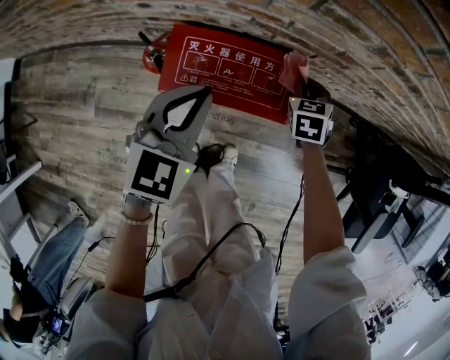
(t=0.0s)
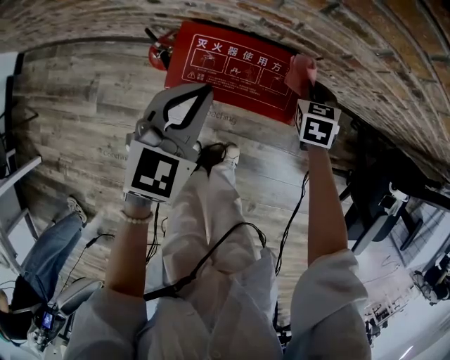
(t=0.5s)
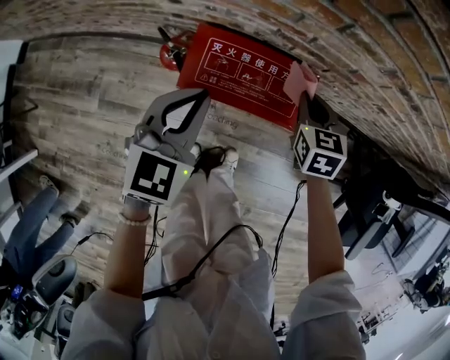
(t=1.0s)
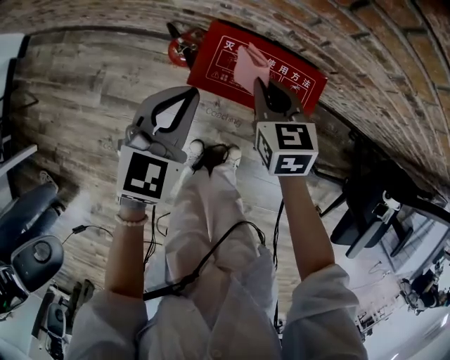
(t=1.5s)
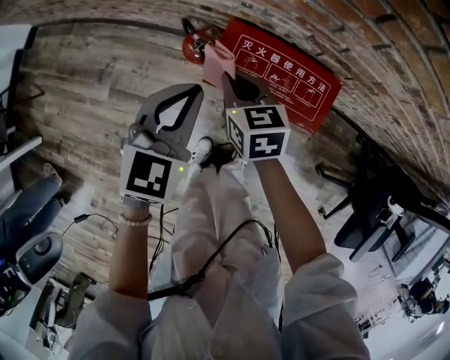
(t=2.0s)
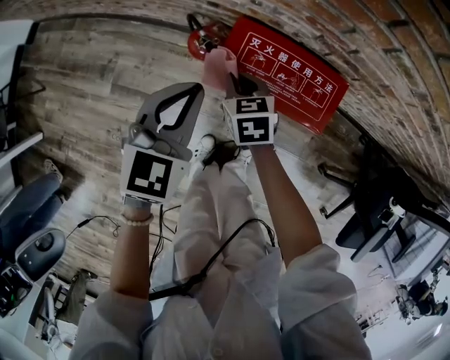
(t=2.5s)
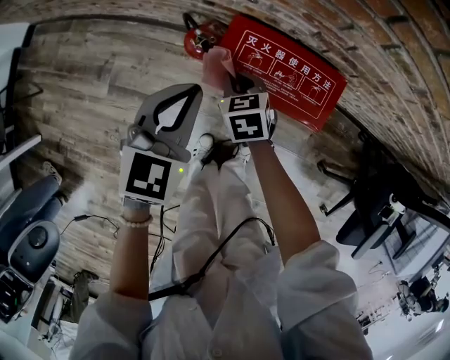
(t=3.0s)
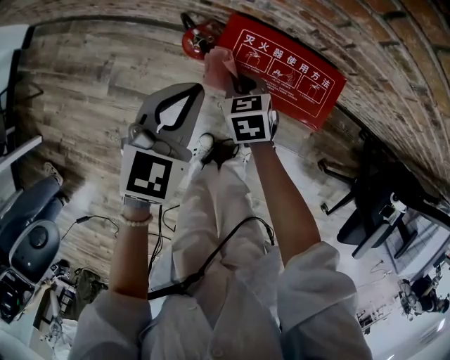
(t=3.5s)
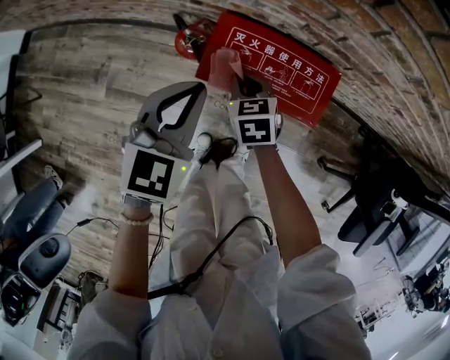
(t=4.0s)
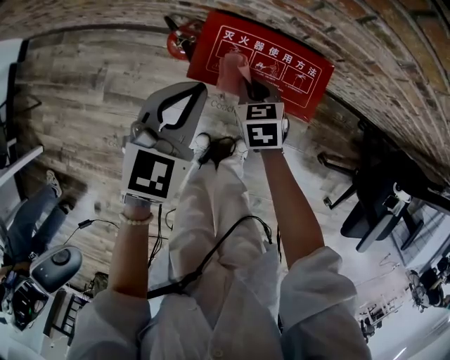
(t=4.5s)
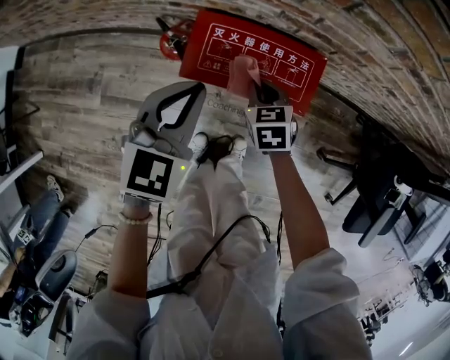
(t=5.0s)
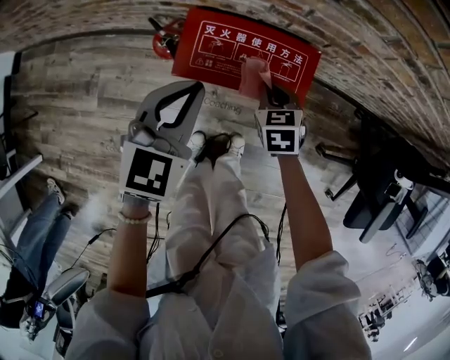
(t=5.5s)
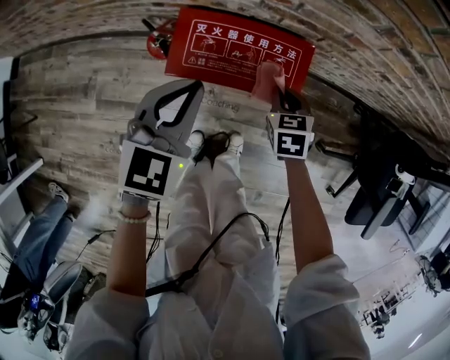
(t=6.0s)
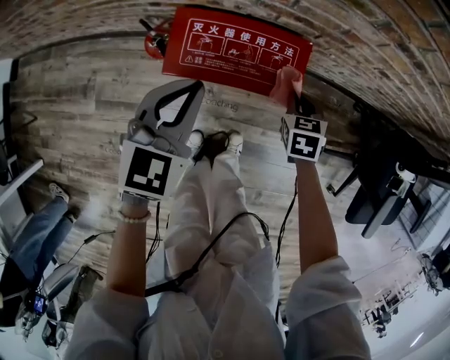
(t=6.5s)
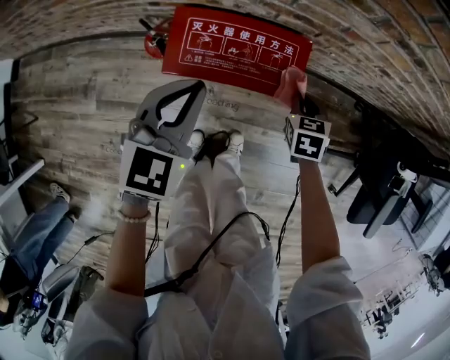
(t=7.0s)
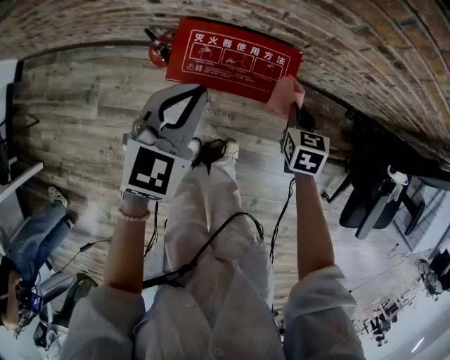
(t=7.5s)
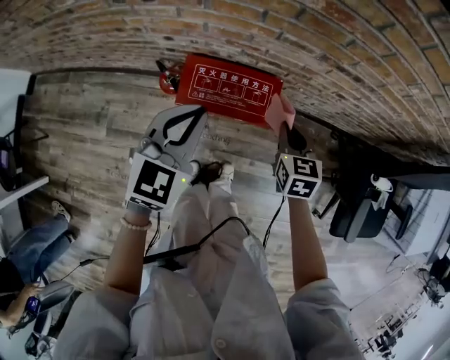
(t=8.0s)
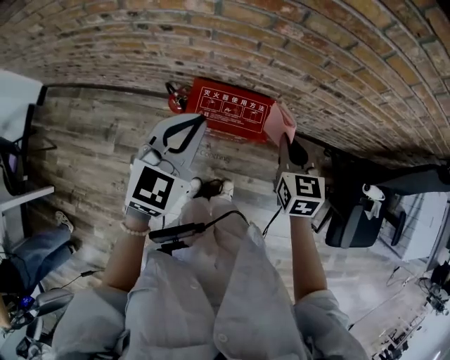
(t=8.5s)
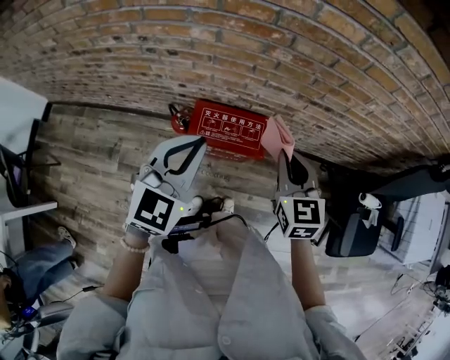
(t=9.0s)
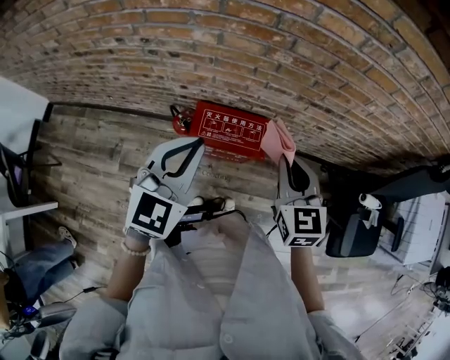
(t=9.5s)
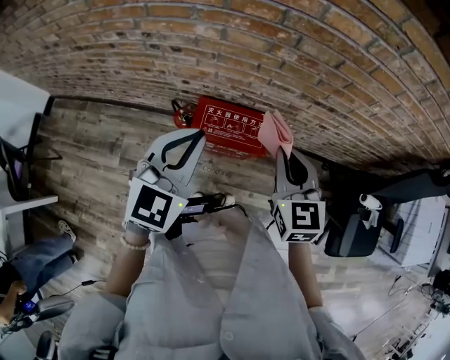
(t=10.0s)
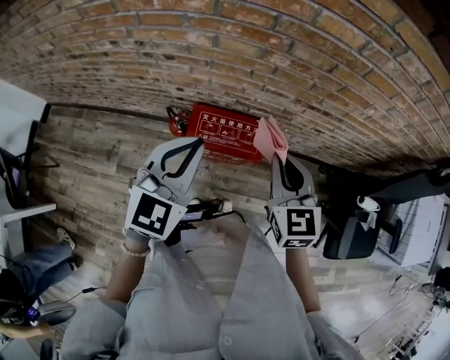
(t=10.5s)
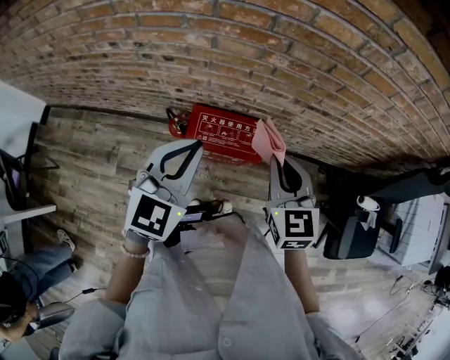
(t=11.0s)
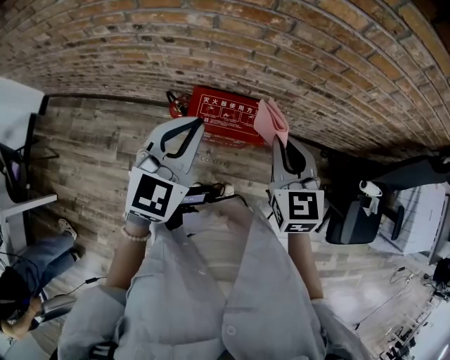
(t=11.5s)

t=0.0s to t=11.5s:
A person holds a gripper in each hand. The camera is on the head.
t=0.0s to t=2.0s: The right gripper changes place by roughly 35 cm, and changes its angle by about 40 degrees. The left gripper ends up approximately 15 cm from where it was.
t=2.0s to t=4.0s: The right gripper shifts about 10 cm downward.
t=4.0s to t=6.0s: The right gripper is displaced to the right by some 20 cm; the left gripper goes about 5 cm to the right.
t=6.0s to t=7.5s: The right gripper travels to the right and upward by some 10 cm.
t=7.5s to t=9.5s: The two grippers go some 30 cm upward. The right gripper changes its angle by roughly 30 degrees.
t=9.5s to t=11.5s: The grippers make only small movements.

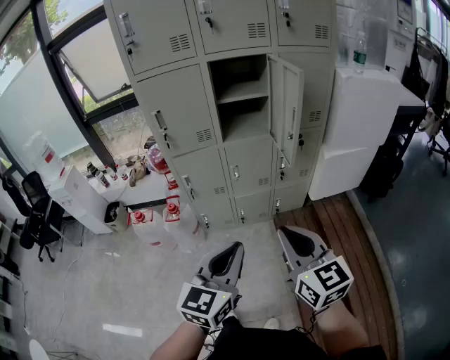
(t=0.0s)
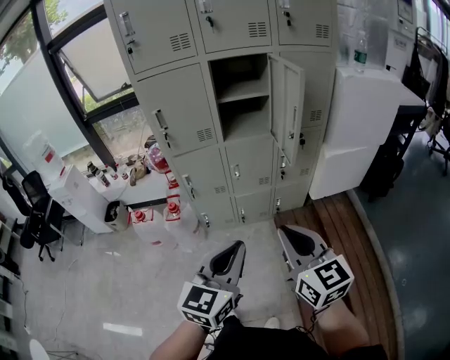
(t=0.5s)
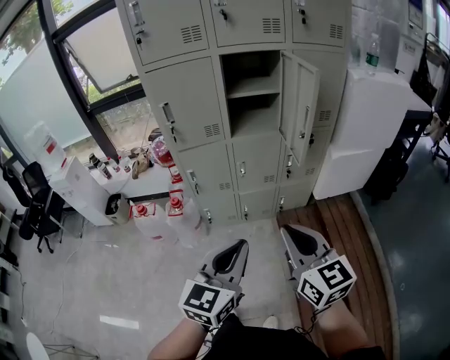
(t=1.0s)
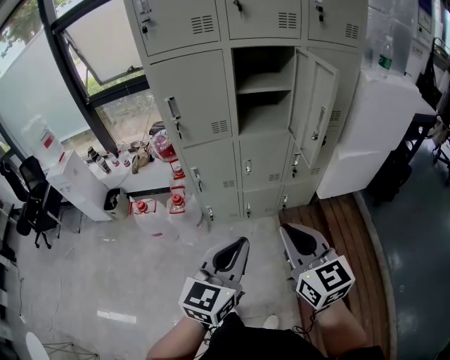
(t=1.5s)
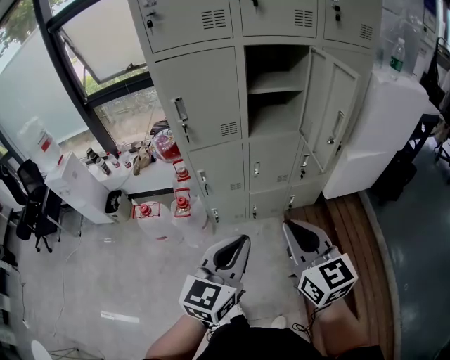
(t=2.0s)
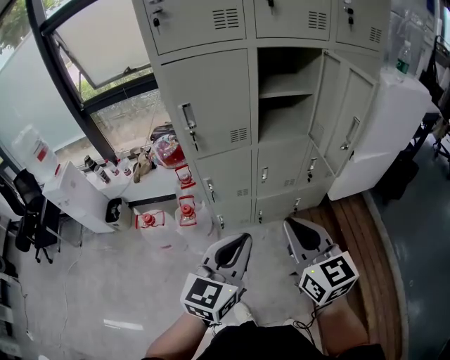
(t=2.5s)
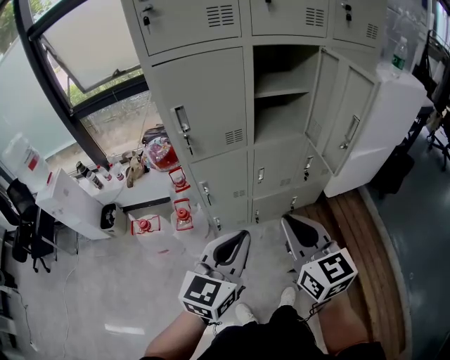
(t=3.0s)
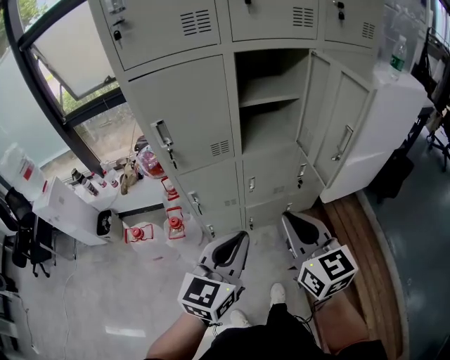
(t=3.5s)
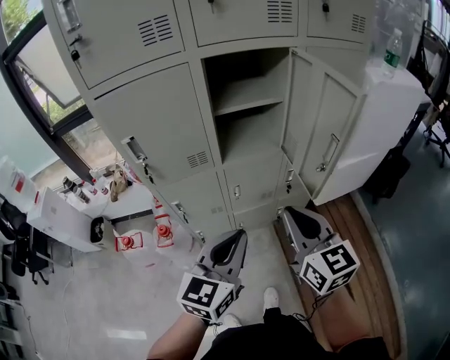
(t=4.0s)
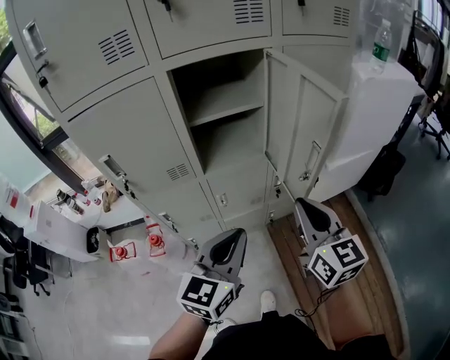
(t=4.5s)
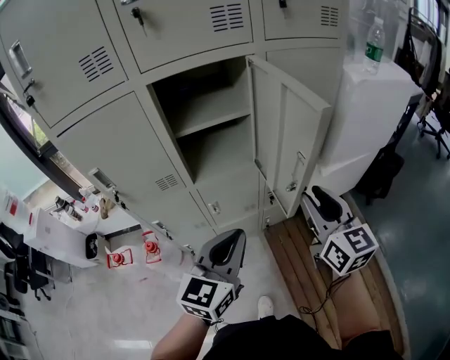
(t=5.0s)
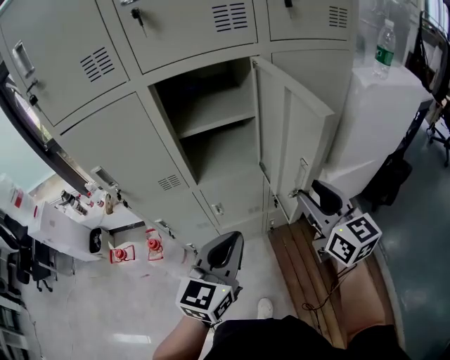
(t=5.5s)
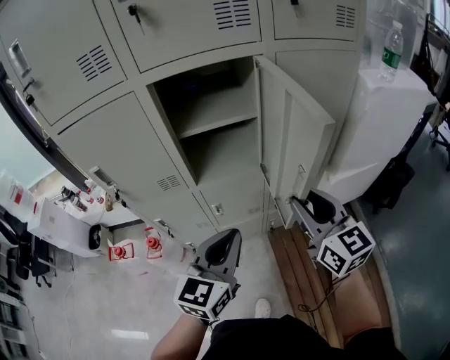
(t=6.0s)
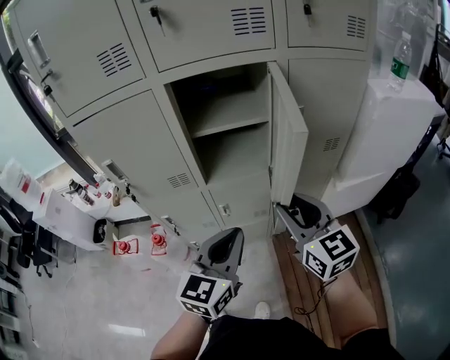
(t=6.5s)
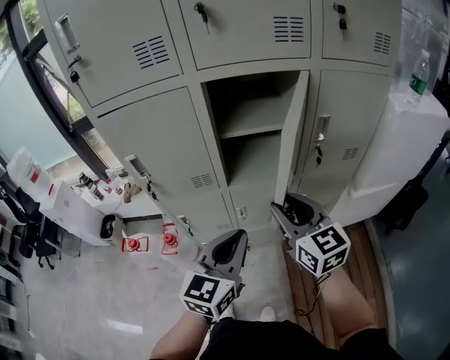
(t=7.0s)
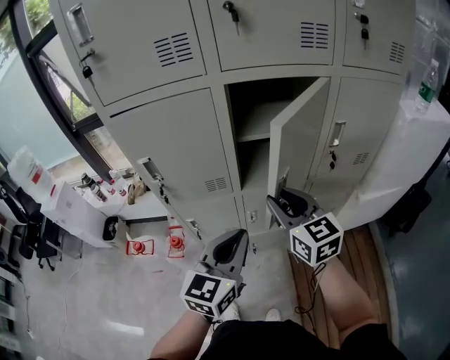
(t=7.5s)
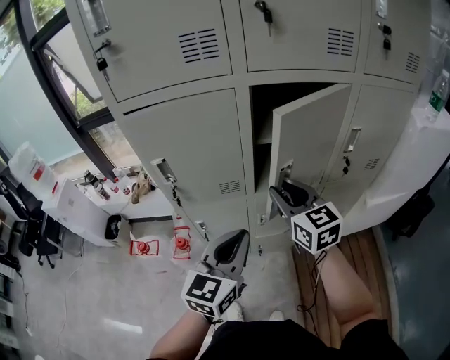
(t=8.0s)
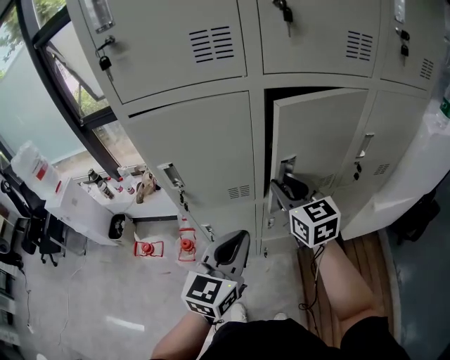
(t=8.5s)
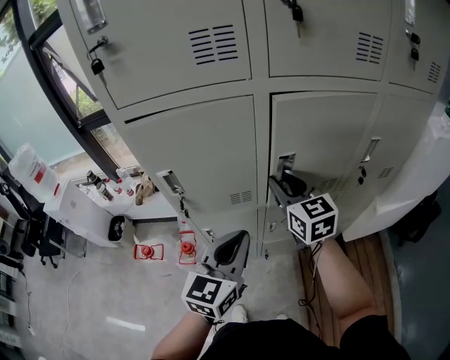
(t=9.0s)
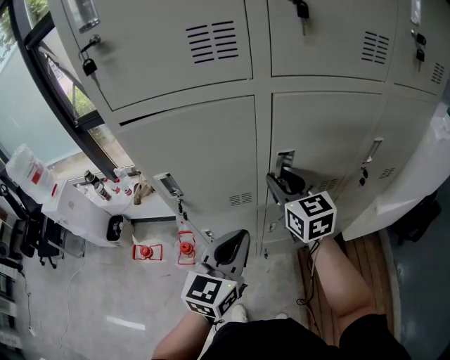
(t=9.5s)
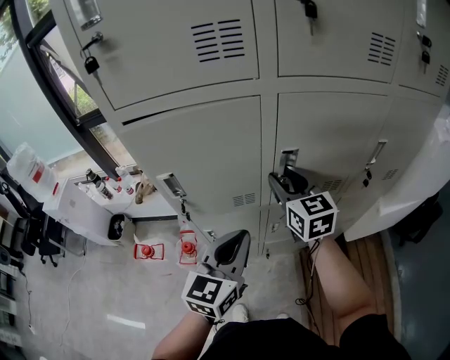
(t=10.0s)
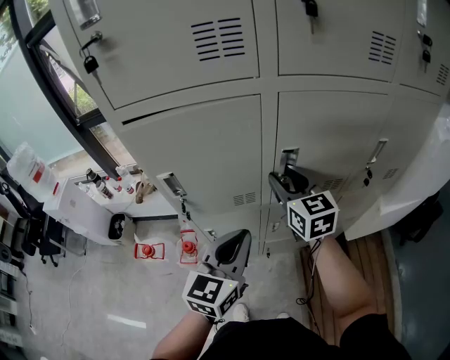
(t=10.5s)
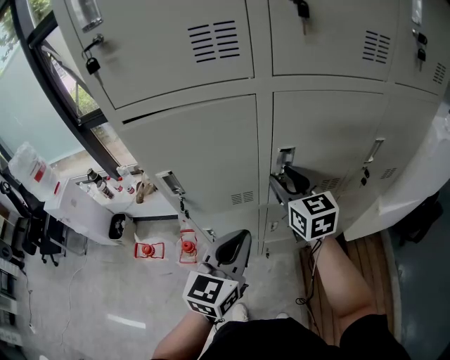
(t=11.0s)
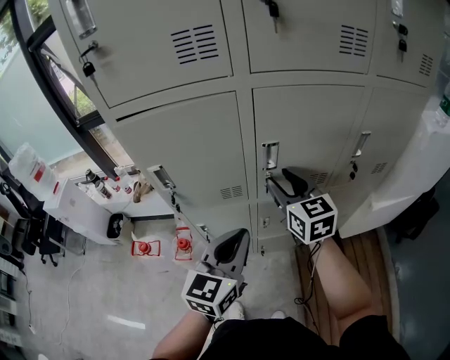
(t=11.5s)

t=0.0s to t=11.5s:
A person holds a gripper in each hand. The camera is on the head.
t=0.0s to t=2.0s: Both grippers travel together to the left and forward, approximately 15 cm.
t=2.0s to t=4.0s: Both grippers travel together forward, about 20 cm.
t=4.0s to t=6.0s: The right gripper goes about 20 cm to the right and forward, and opens its fingers. The left gripper heads forward and to the right, covering approximately 15 cm.
t=6.0s to t=7.5s: The left gripper heads to the left, covering roughly 10 cm. Meanwhile the right gripper is displaced to the left by roughly 20 cm.
t=7.5s to t=9.5s: The left gripper goes roughly 10 cm to the left and forward. The right gripper goes roughly 15 cm forward and to the left.
t=9.5s to t=11.5s: The grippers move only a little.

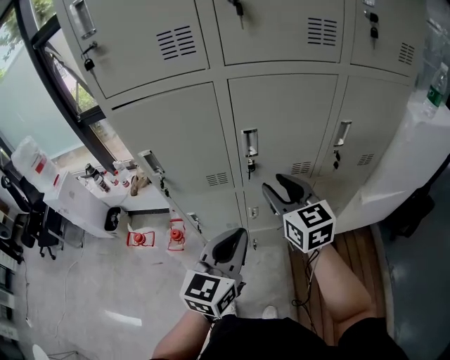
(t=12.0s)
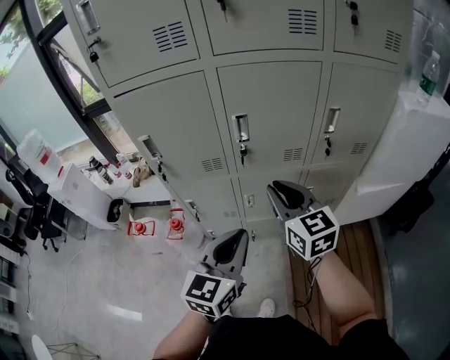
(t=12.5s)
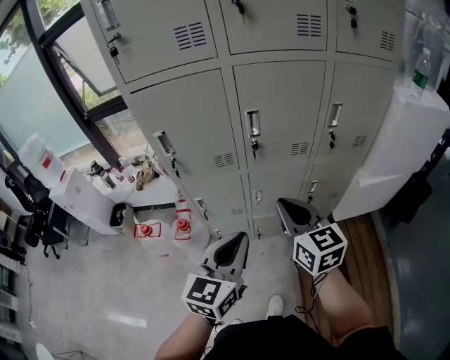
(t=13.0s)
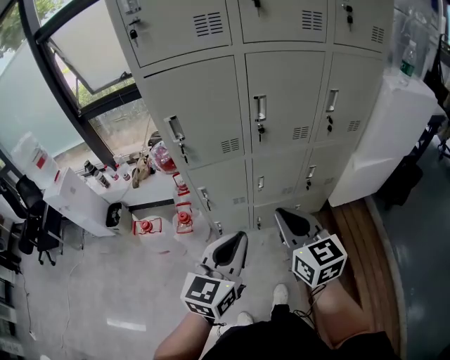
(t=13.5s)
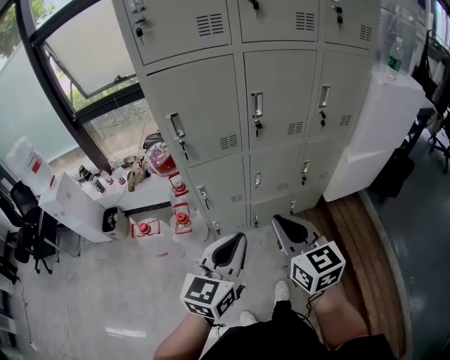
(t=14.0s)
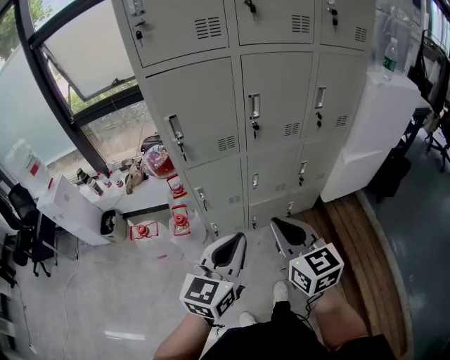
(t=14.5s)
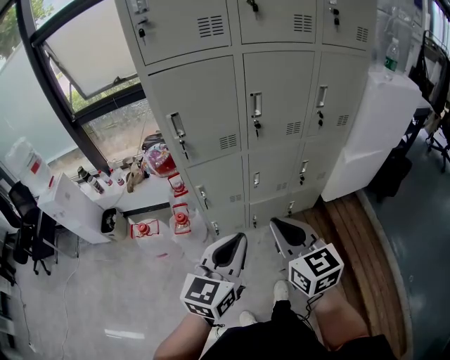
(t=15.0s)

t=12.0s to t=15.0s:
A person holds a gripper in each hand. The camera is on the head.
t=12.0s to t=13.5s: The left gripper heads backward and to the left, covering about 15 cm, while the right gripper moves backward, roughly 25 cm, and closes its fingers.
t=13.5s to t=15.0s: The right gripper travels backward by approximately 5 cm.

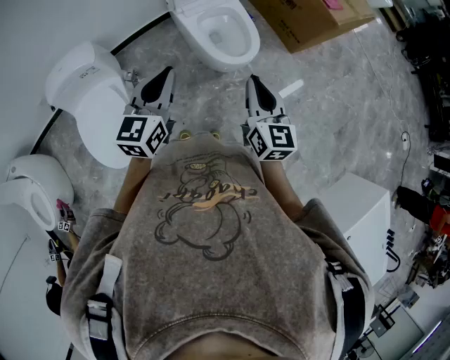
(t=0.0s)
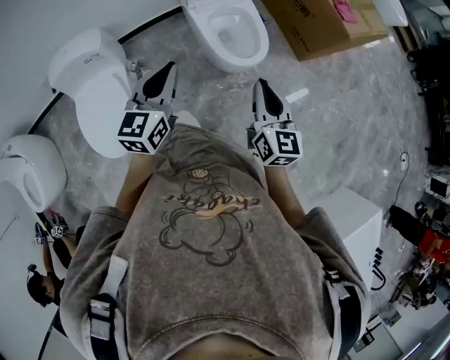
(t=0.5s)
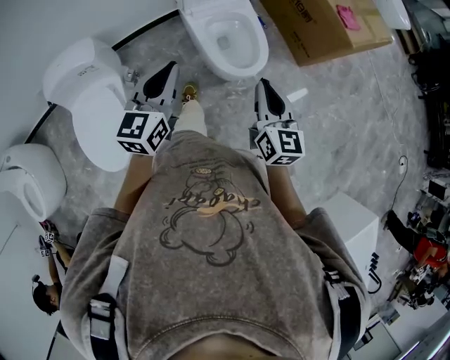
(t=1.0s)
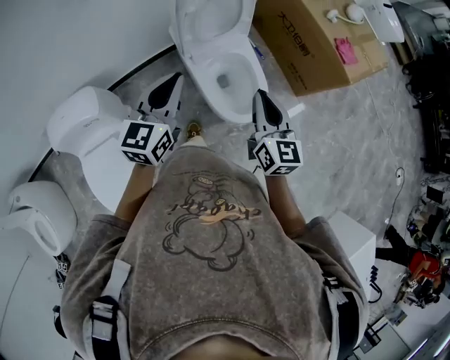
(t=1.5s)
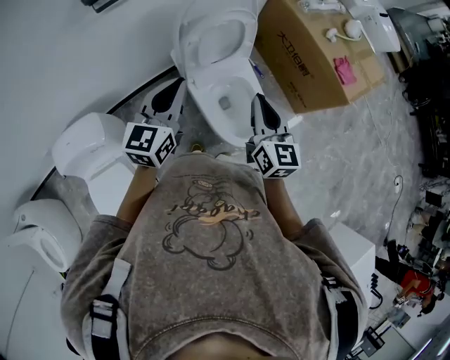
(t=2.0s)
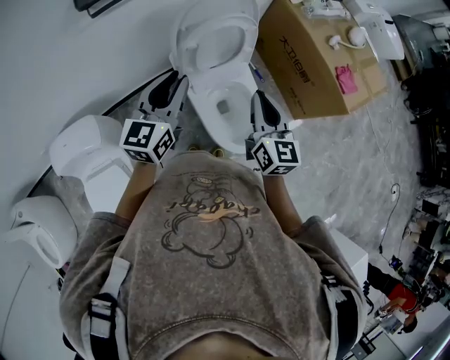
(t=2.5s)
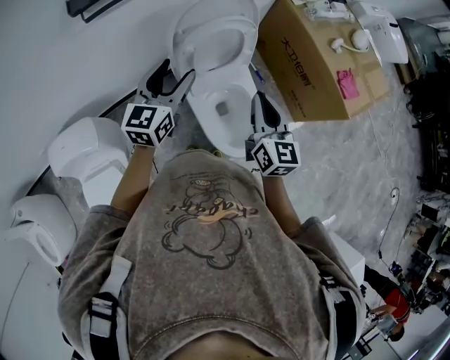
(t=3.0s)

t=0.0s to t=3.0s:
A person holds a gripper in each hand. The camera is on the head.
t=0.0s to t=1.5s: Both grippers travel together forward, some 30 cm.
t=1.5s to t=3.0s: Both grippers travel together forward, some 20 cm. The left gripper opens its fingers.
